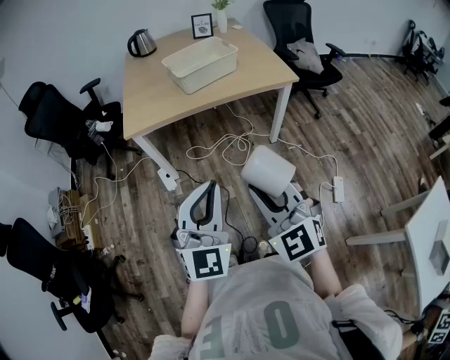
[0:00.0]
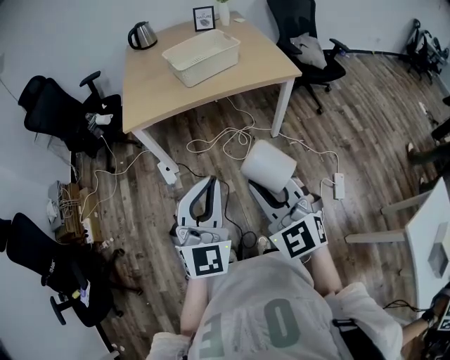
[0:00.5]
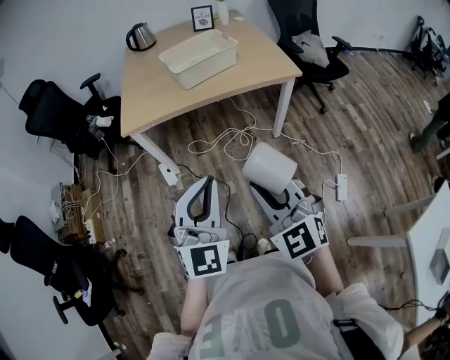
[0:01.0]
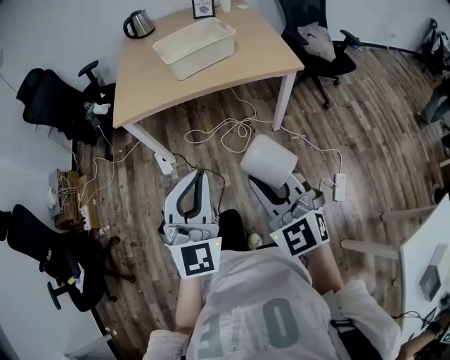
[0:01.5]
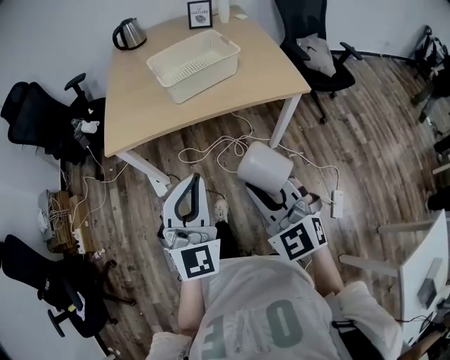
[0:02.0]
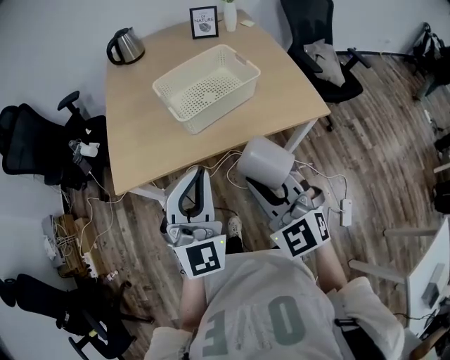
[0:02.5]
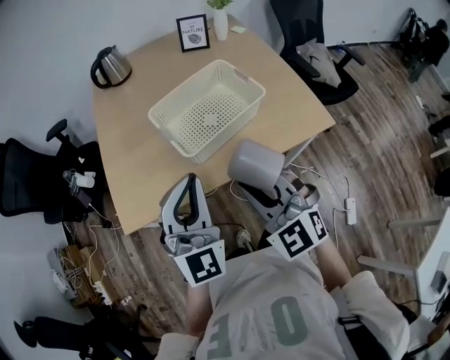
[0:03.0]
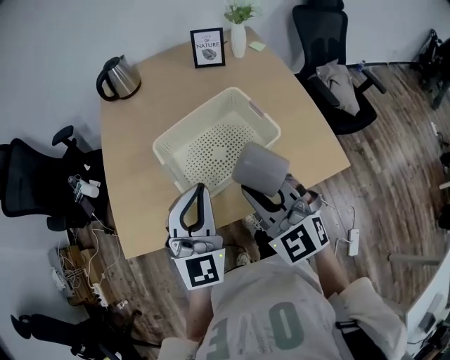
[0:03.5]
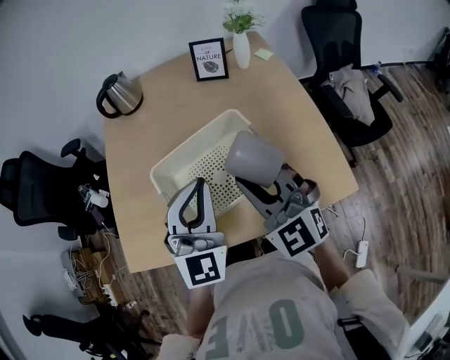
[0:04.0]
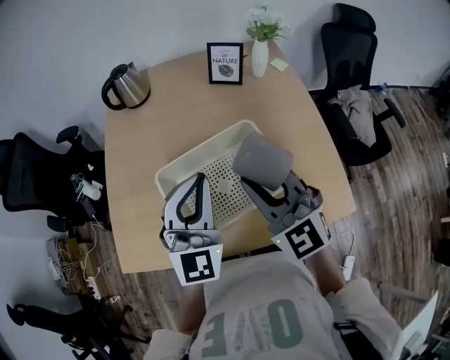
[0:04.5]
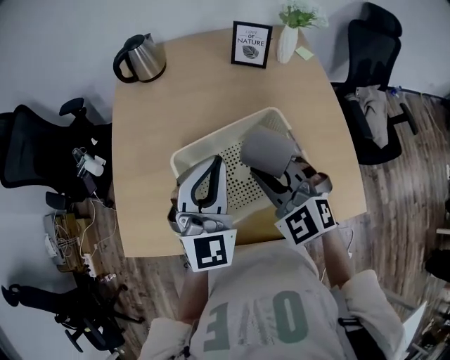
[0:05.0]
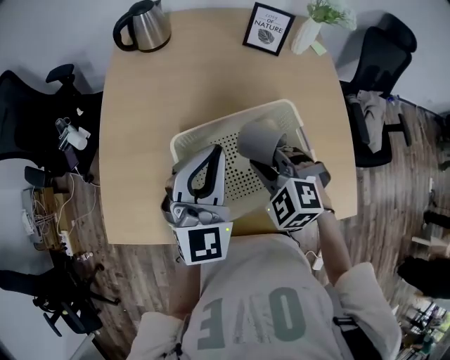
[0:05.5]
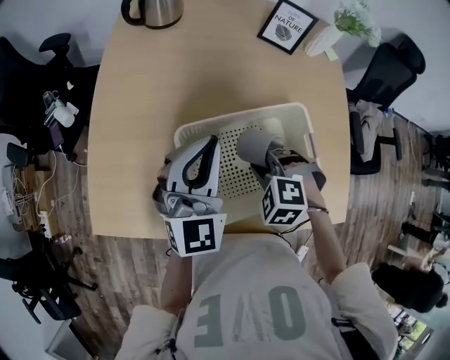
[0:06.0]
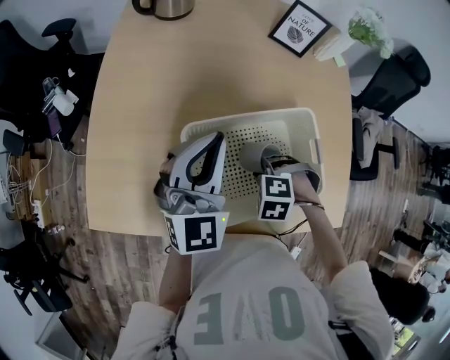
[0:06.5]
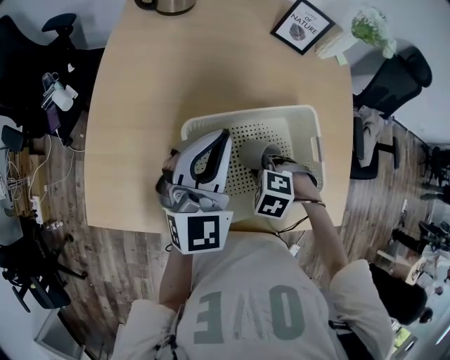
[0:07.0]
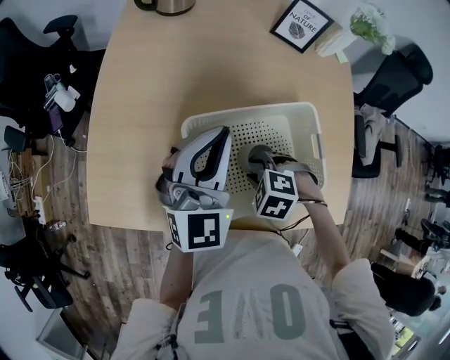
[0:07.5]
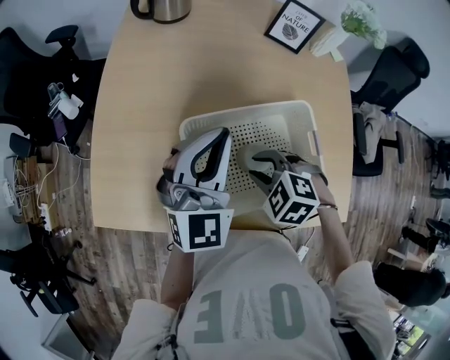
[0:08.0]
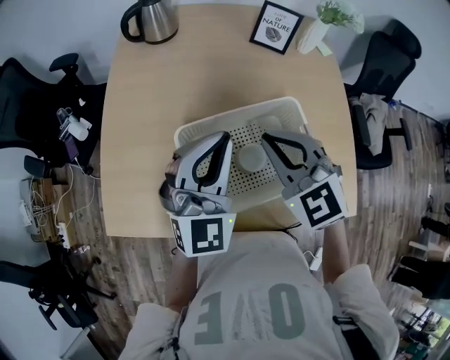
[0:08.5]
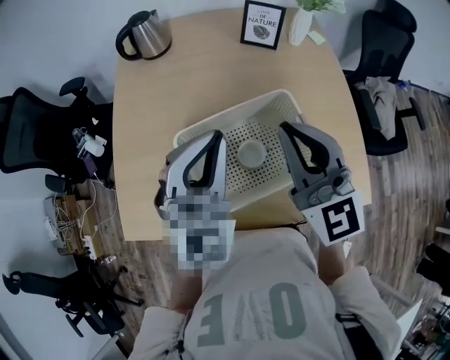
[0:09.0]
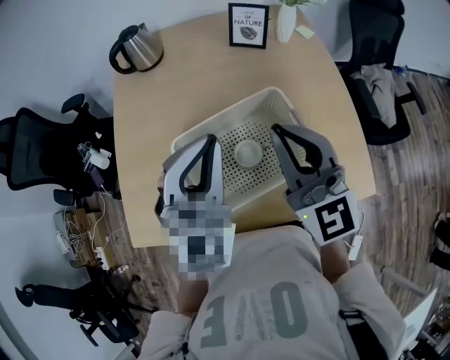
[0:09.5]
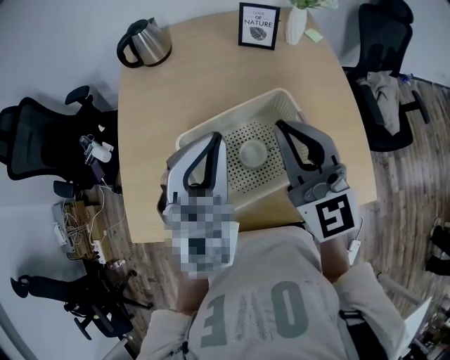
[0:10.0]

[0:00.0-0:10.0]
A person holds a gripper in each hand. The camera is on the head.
0:00.0 to 0:02.0: The grippers both shift forward by some 20 cm.
0:02.0 to 0:04.0: The pair of grippers is taken forward, roughly 50 cm.
0:04.0 to 0:06.0: The right gripper is displaced downward and forward by roughly 25 cm, and tilts its fingers approximately 60 degrees downward, while the left gripper travels forward, to the left and downward by some 20 cm.
0:06.0 to 0:08.0: The right gripper reaches roughly 5 cm downward, then returns, and opens up.
0:08.0 to 0:10.0: The right gripper is displaced upward by roughly 25 cm, points its fingers approximately 70 degrees further upward, and closes. The left gripper heads upward, to the right and backward, covering some 15 cm.

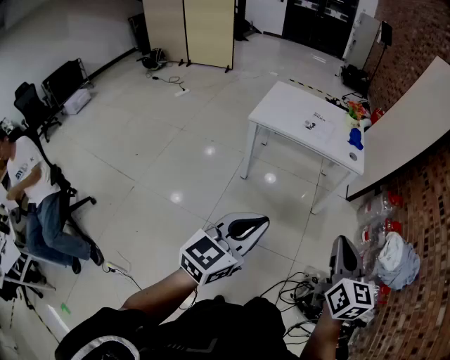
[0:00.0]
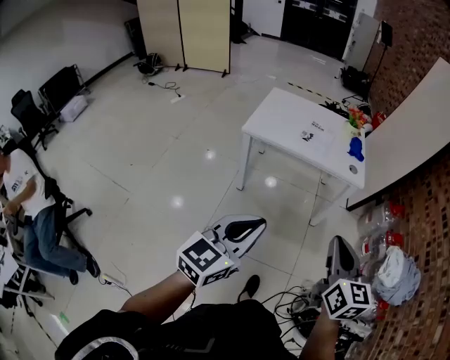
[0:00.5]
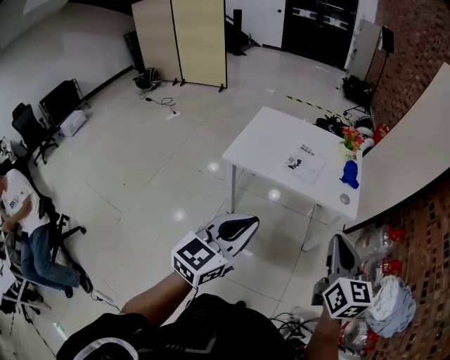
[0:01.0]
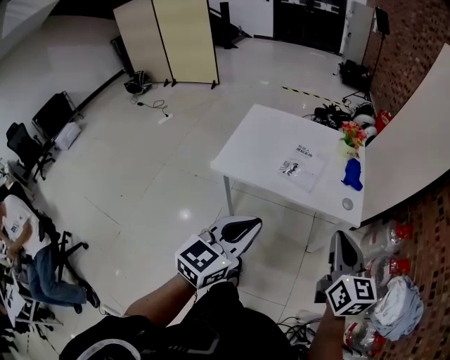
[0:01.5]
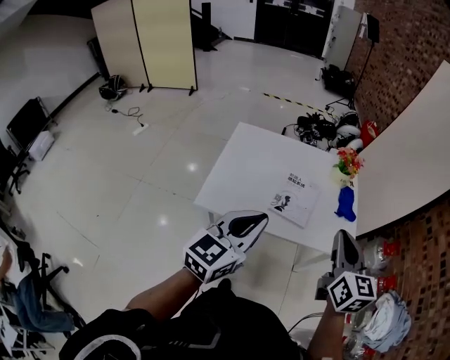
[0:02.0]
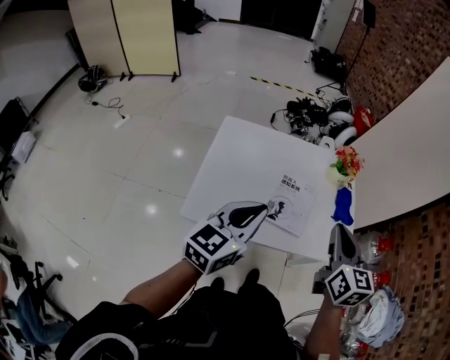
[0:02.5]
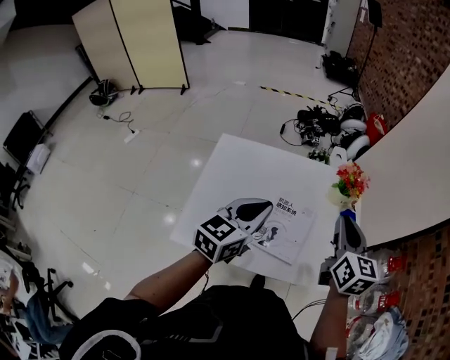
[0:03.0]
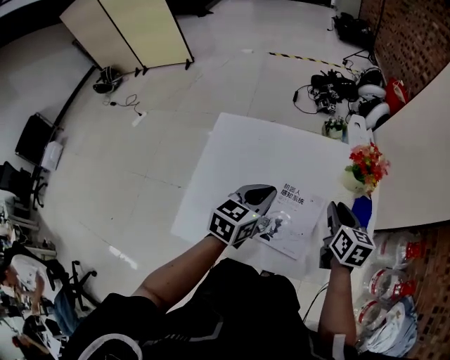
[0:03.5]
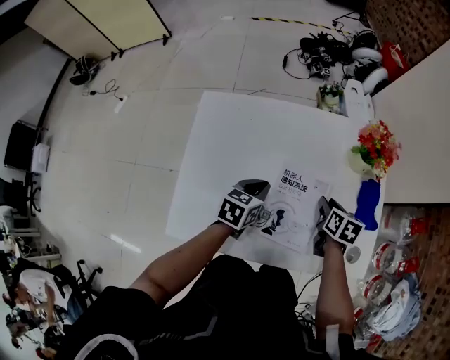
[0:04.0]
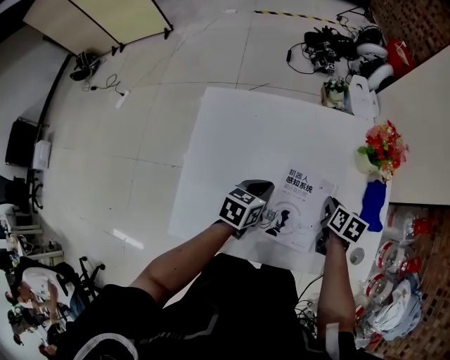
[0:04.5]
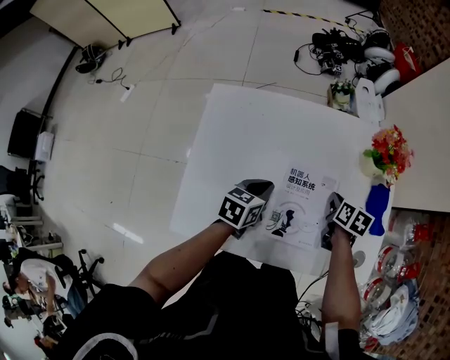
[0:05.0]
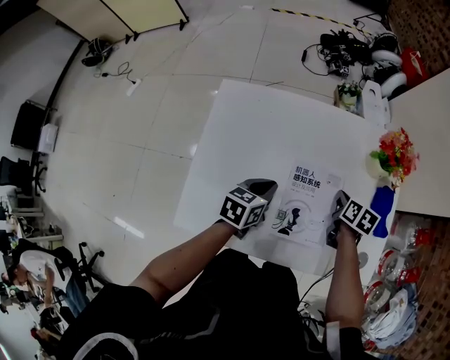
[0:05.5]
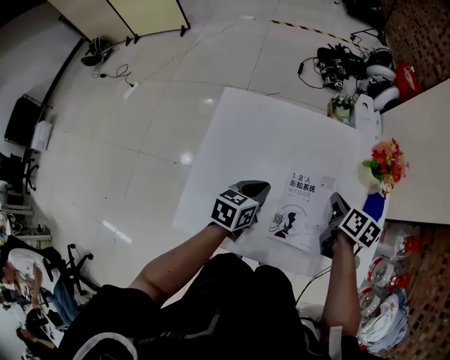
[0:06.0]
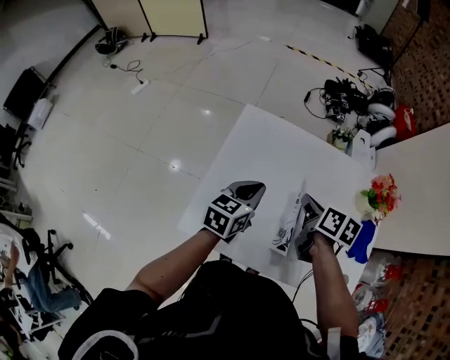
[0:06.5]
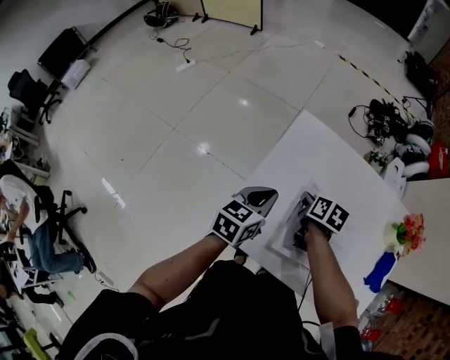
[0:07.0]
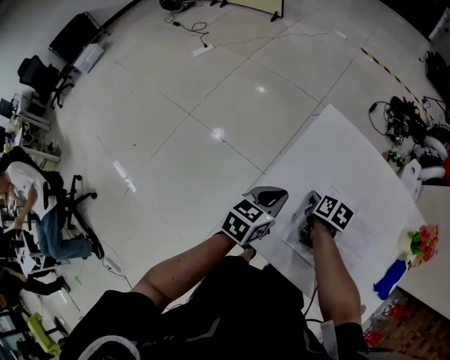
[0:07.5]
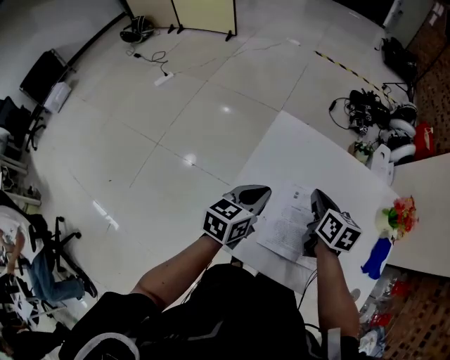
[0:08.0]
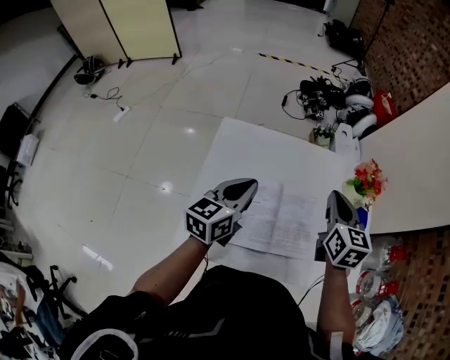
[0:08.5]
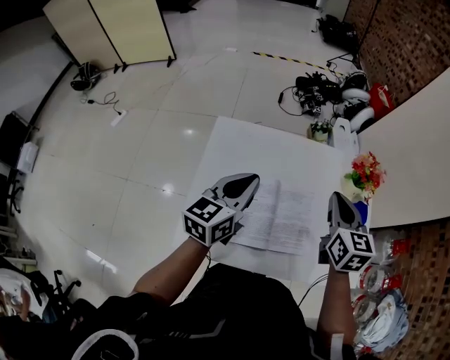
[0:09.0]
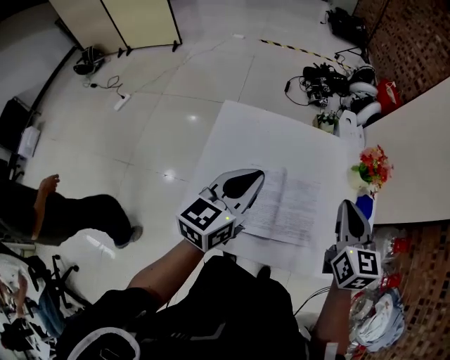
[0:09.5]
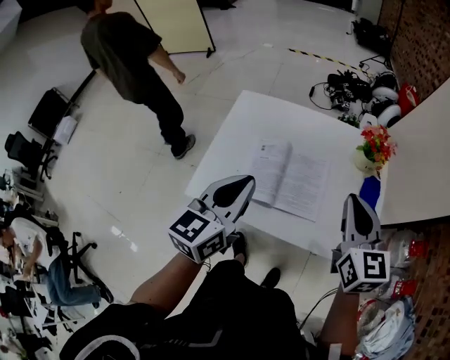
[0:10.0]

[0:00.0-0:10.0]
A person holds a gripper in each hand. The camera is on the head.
0:00.0 to 0:02.0: Both grippers are carried forward, roughly 60 cm.
0:02.0 to 0:04.0: The two grippers go some 50 cm forward and downward. The left gripper tilts its fingers approximately 40 degrees downward, while the right gripper angles its fingers downward, by about 40 degrees, and opens up.
0:04.0 to 0:06.0: The right gripper goes approximately 5 cm upward, and closes. Meanwhile the left gripper ends up about 5 cm from where it was.
0:06.0 to 0:08.0: The right gripper is displaced to the left by some 25 cm, and turns by about 30 degrees, while the left gripper is displaced to the left and upward by about 20 cm.
0:08.0 to 0:10.0: The two grippers go approximately 35 cm to the right, backward and upward. The right gripper changes its angle by approximately 30 degrees.

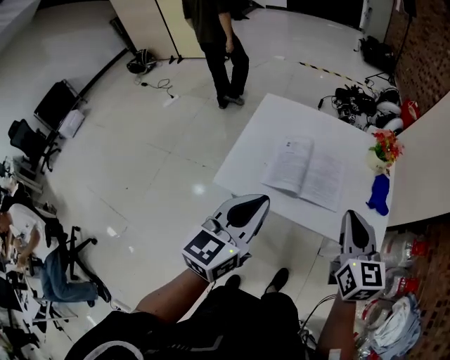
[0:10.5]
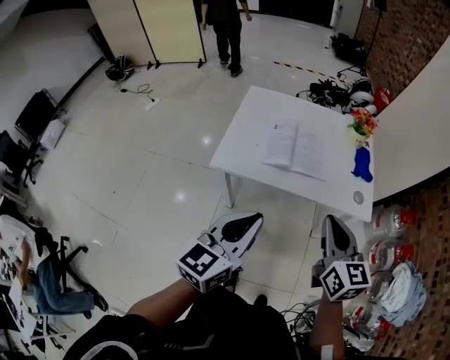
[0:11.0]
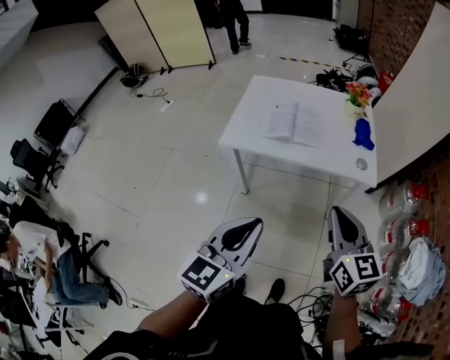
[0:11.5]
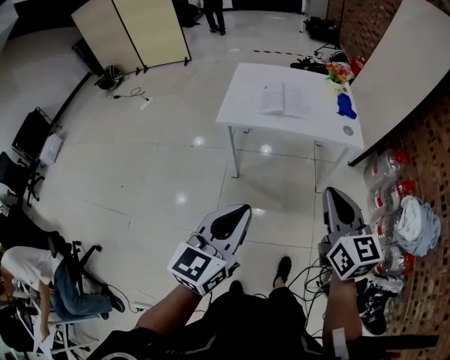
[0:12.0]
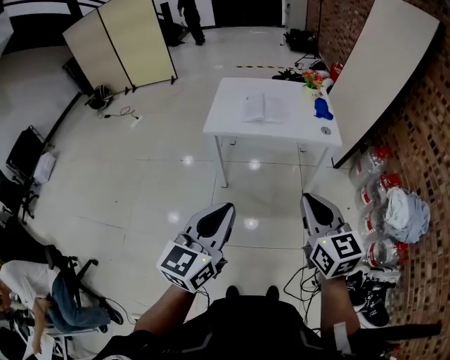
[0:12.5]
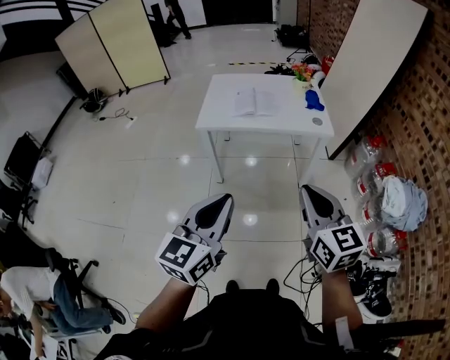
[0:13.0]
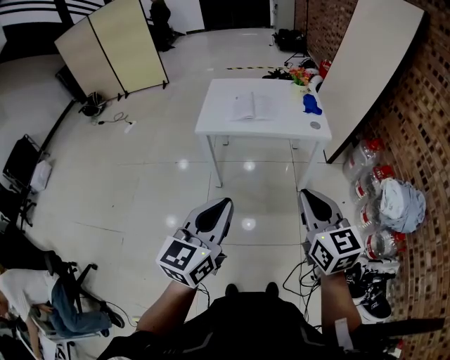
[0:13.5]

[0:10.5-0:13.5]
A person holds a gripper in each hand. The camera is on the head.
0:10.5 to 0:12.0: The two grippers travel together, backward, approximately 40 cm.
0:12.0 to 0:13.5: Both grippers move backward, some 10 cm.

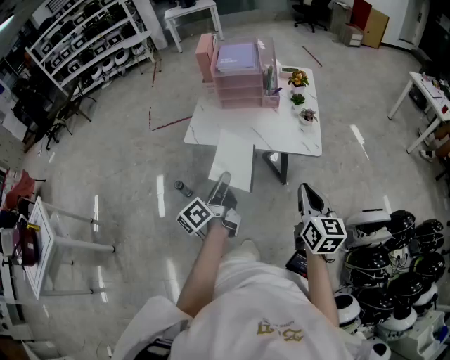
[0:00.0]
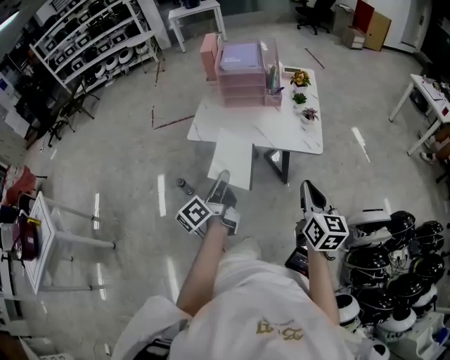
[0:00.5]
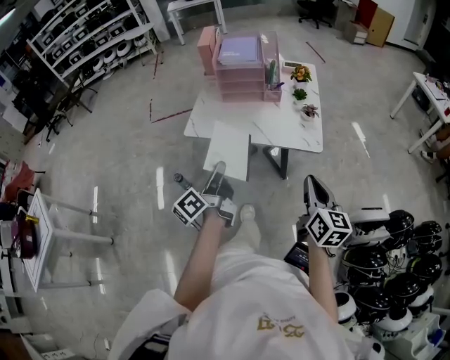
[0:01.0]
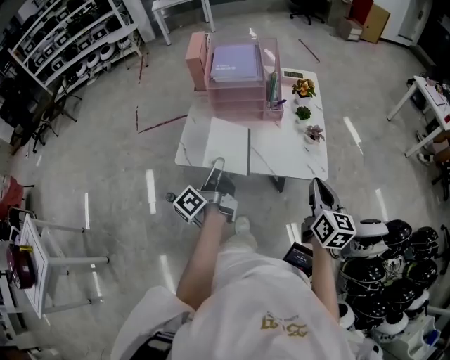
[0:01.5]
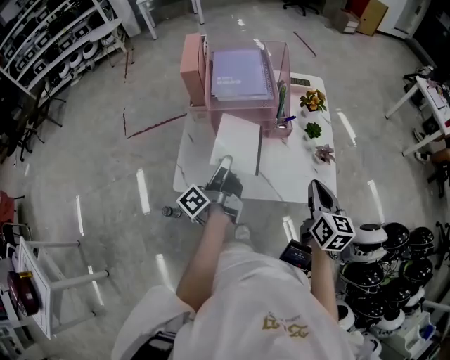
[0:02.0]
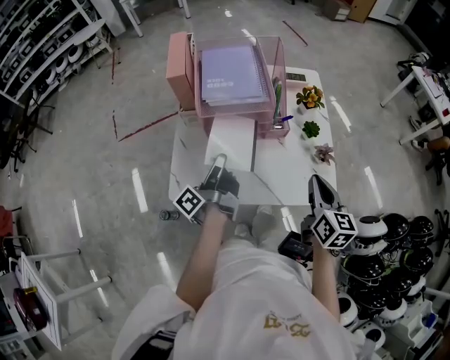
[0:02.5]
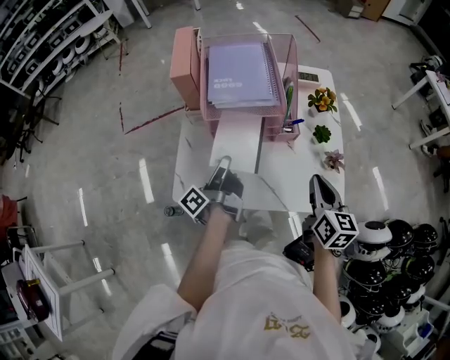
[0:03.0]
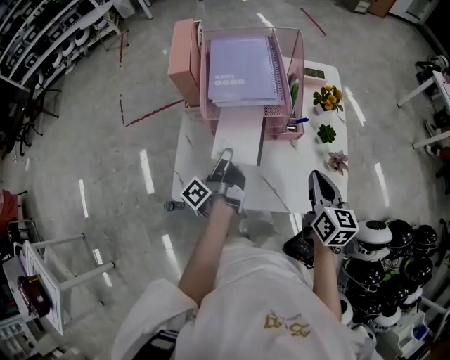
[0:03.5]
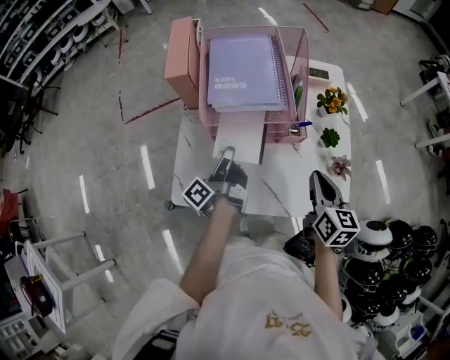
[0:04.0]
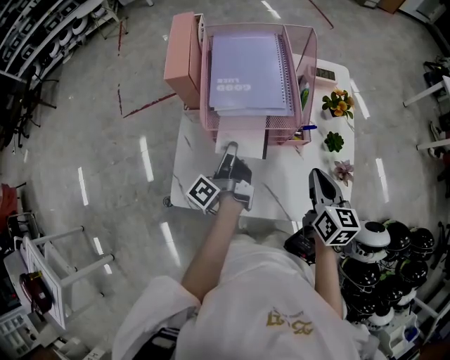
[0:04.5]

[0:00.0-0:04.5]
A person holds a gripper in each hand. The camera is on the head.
0:00.0 to 0:02.0: The right gripper moves roughly 30 cm.
0:02.0 to 0:04.5: The right gripper changes place by about 15 cm.
